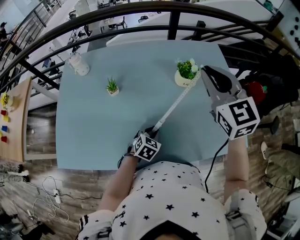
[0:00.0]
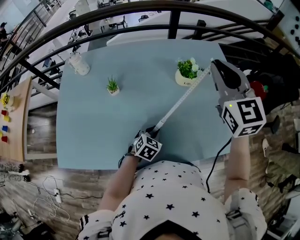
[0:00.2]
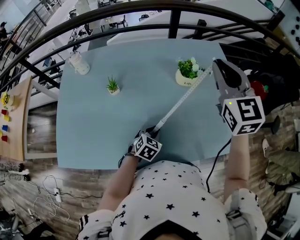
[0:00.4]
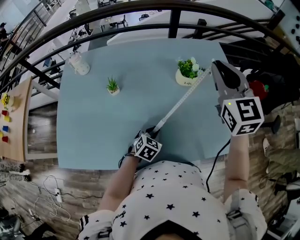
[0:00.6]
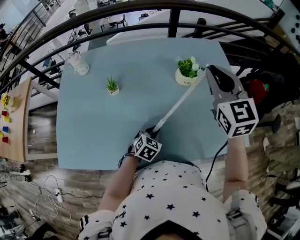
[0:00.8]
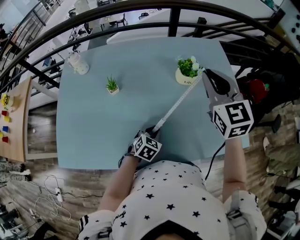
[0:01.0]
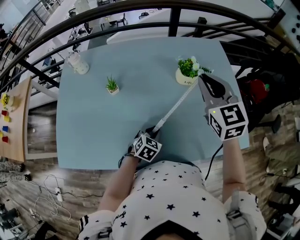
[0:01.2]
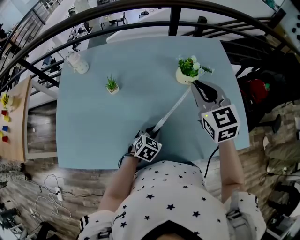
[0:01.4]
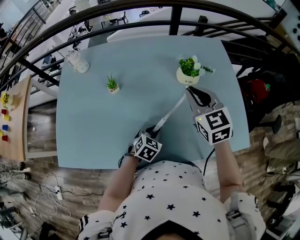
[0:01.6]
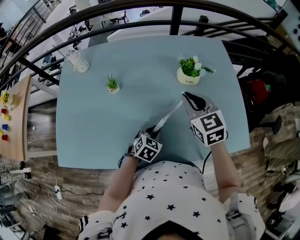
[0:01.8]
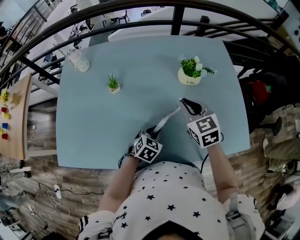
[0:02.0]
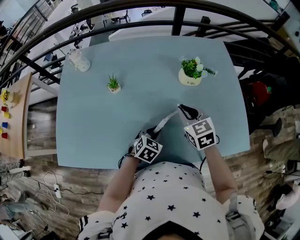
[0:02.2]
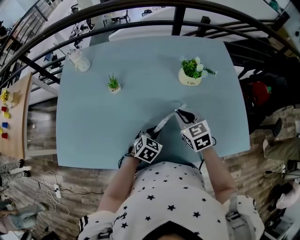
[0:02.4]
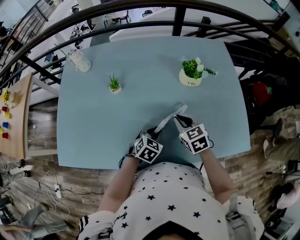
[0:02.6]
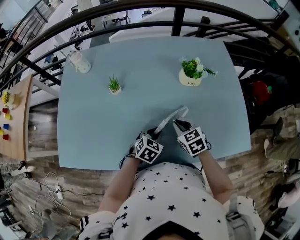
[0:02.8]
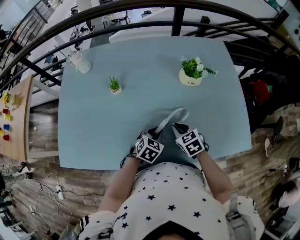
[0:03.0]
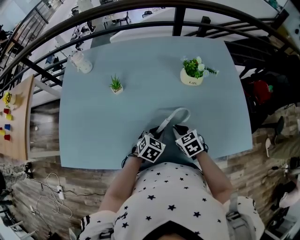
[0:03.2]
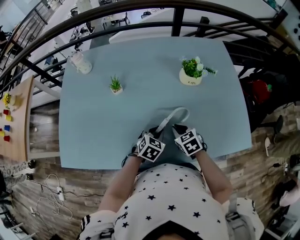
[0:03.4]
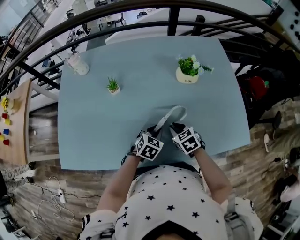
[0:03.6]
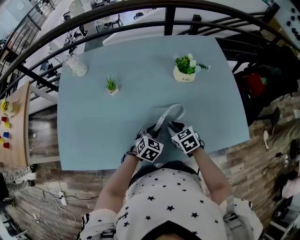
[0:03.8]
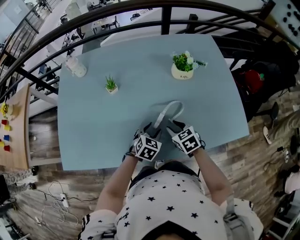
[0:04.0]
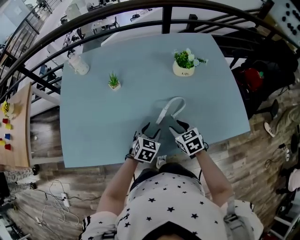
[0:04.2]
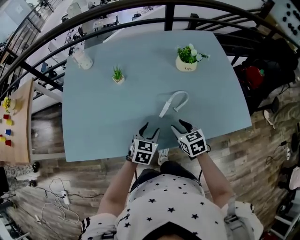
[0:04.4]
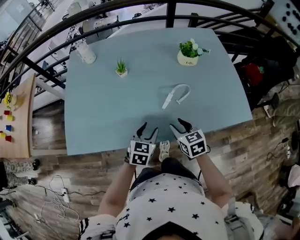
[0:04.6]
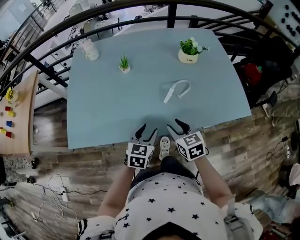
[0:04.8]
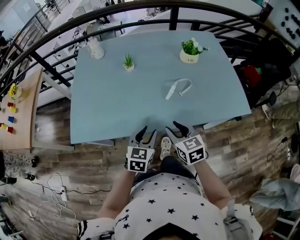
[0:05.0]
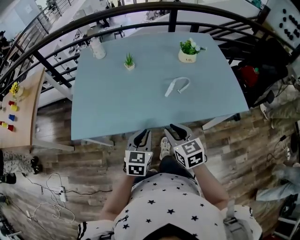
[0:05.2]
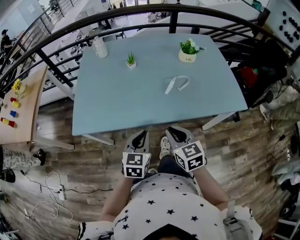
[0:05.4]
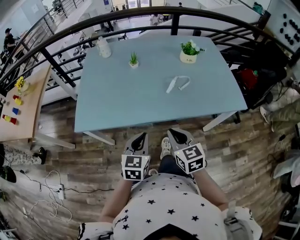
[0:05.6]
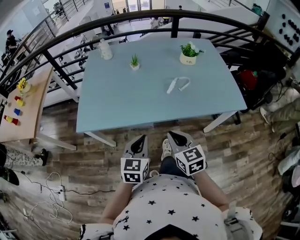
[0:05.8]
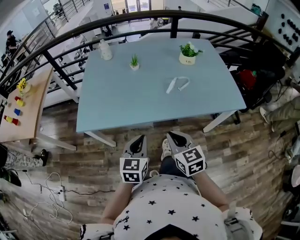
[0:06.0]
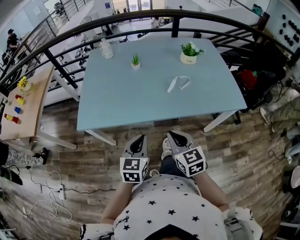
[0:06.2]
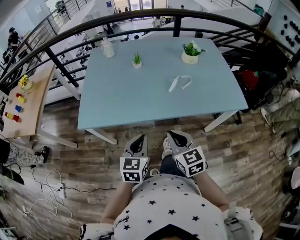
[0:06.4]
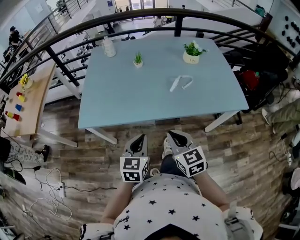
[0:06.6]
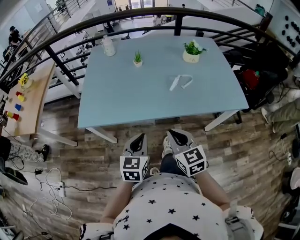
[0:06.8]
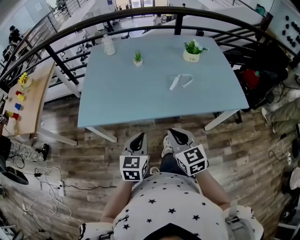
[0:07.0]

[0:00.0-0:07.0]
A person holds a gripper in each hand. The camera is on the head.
0:00.0 to 0:01.4: The right gripper is displaced downward by about 10 cm.
0:01.4 to 0:02.8: The right gripper travels downward by roughly 20 cm, and swivels roughly 30 degrees.
0:02.8 to 0:04.2: The left gripper changes place by about 5 cm, and opens. Meanwhile the right gripper shifts some 10 cm backward, and opens.
0:04.2 to 0:05.6: The right gripper moves backward, upward and to the left, roughly 30 cm, rotates roughly 20 degrees, and closes. Meanwhile the left gripper shifts about 35 cm backward, to the left and upward, rotates some 20 degrees, and closes.
0:05.6 to 0:07.0: The grippers make only small movements.

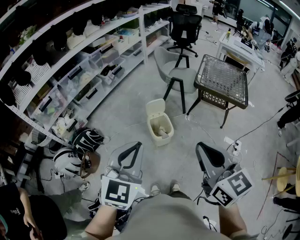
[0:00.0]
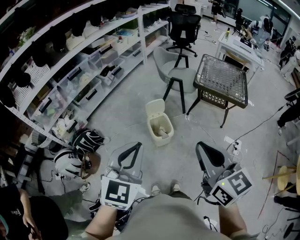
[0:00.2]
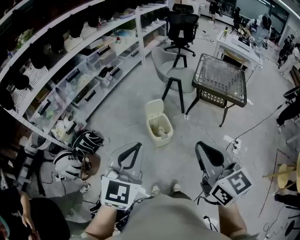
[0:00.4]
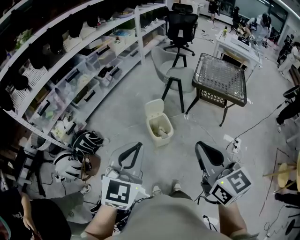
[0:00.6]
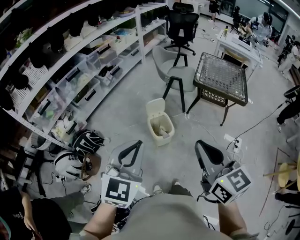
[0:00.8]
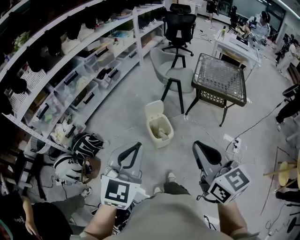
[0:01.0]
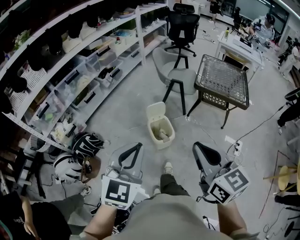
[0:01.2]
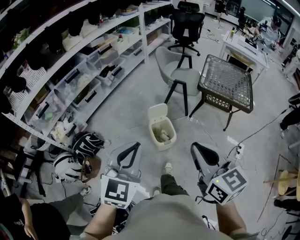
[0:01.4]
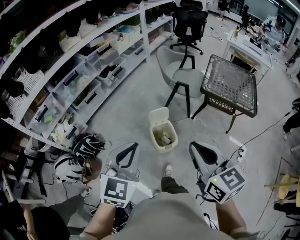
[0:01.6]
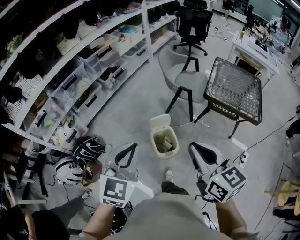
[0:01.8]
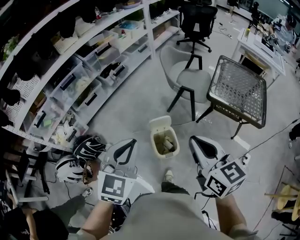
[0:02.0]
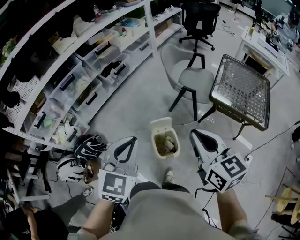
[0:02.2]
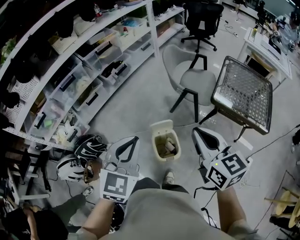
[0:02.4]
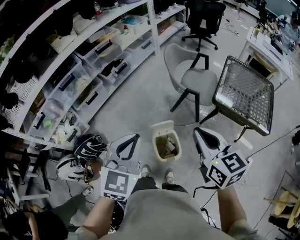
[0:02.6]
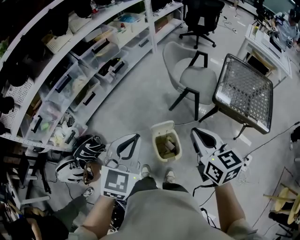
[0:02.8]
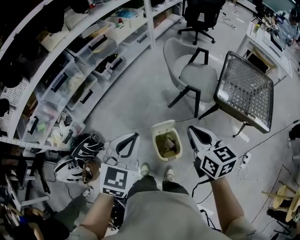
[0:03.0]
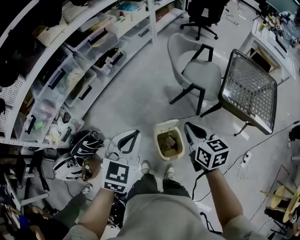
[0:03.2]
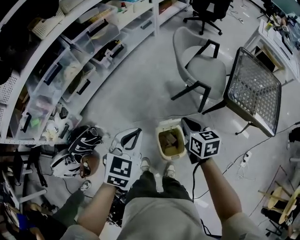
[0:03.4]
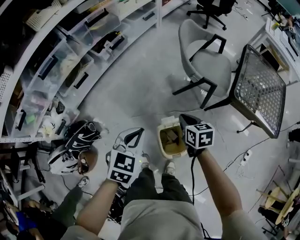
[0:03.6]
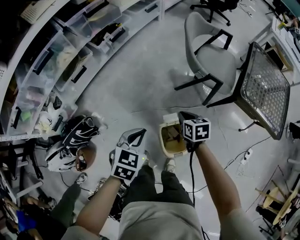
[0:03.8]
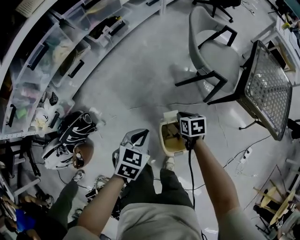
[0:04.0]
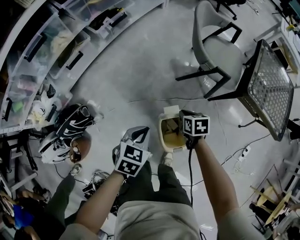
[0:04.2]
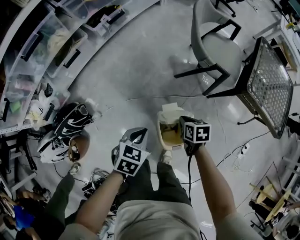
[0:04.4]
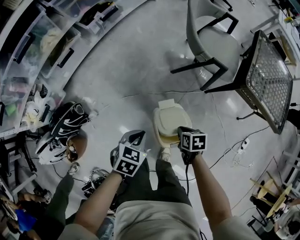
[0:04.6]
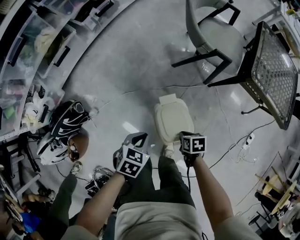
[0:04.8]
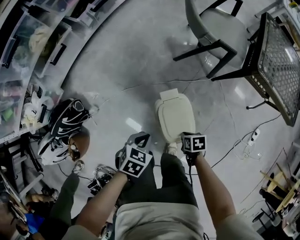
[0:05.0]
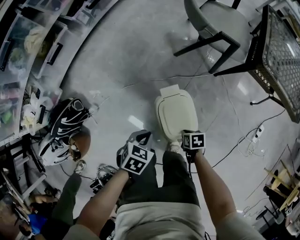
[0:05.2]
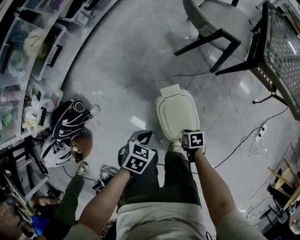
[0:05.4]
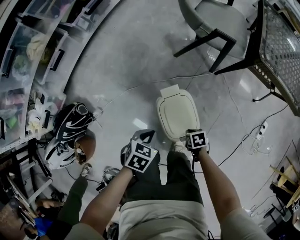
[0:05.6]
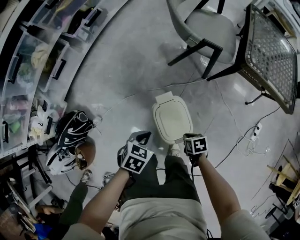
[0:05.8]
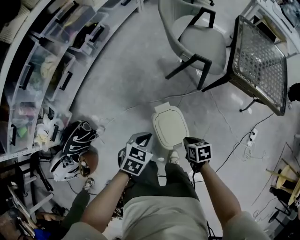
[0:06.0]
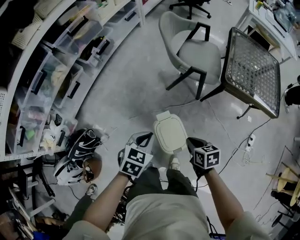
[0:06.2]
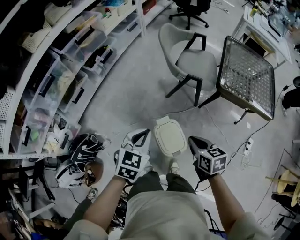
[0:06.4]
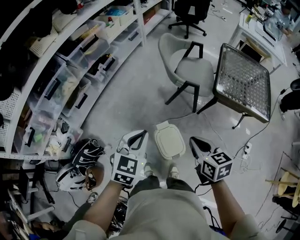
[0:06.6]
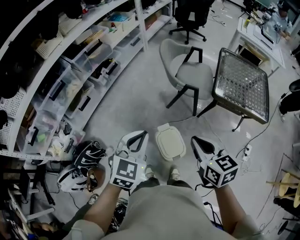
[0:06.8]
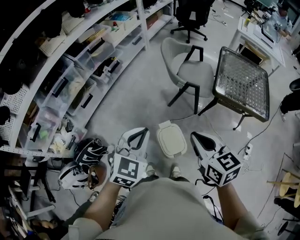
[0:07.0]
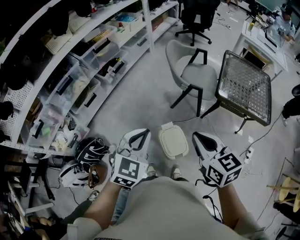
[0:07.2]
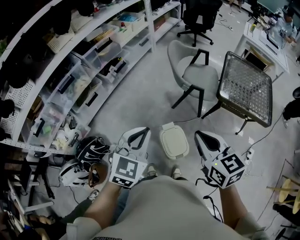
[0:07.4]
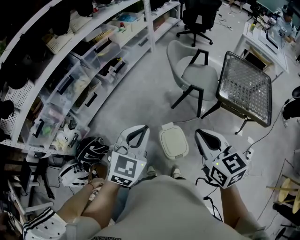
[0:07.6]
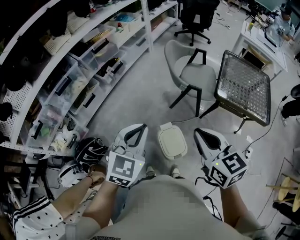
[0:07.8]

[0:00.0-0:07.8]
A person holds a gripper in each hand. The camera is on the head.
0:00.0 to 0:01.6: The two grippers go about 15 cm forward.
0:01.6 to 0:03.2: The right gripper travels forward and downward by some 40 cm. Meanwhile the left gripper travels forward by about 30 cm.
0:03.2 to 0:04.6: Both grippers move downward, some 35 cm. The left gripper swivels about 30 degrees. Meanwhile the right gripper tips its fingers downward by some 40 degrees.
0:04.6 to 0:06.2: Both grippers move upward, roughly 15 cm.
0:06.2 to 0:07.8: The grippers both shift upward by approximately 30 cm. The left gripper rotates about 30 degrees. Meanwhile the right gripper points its fingers roughly 30 degrees further upward.

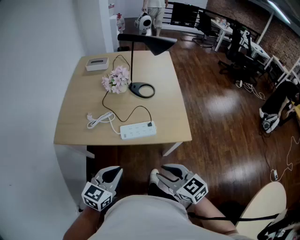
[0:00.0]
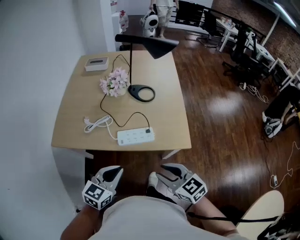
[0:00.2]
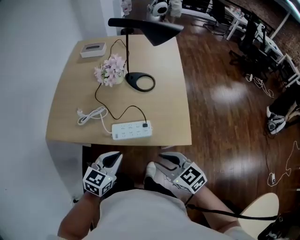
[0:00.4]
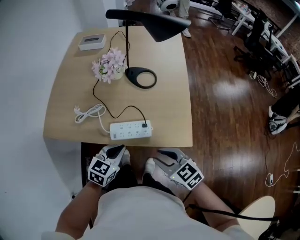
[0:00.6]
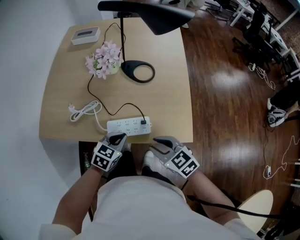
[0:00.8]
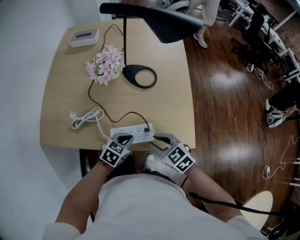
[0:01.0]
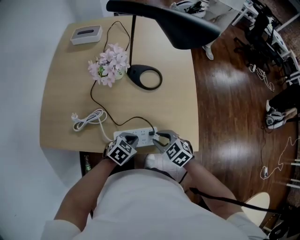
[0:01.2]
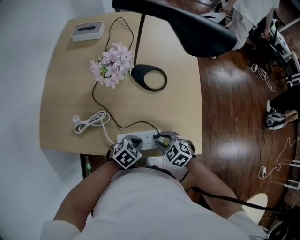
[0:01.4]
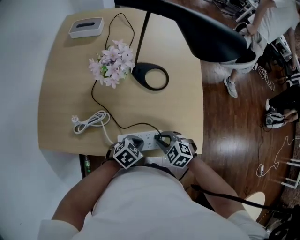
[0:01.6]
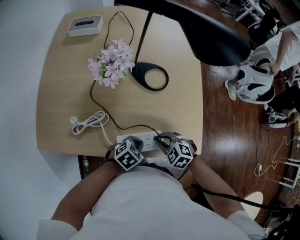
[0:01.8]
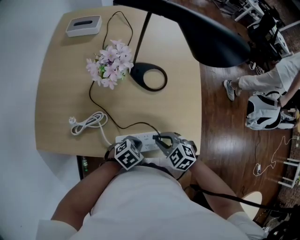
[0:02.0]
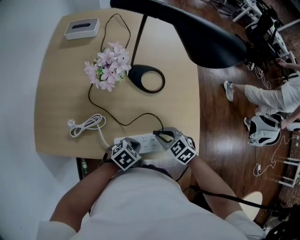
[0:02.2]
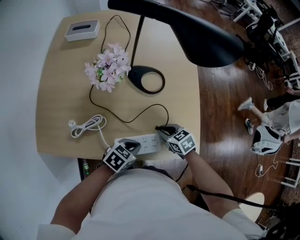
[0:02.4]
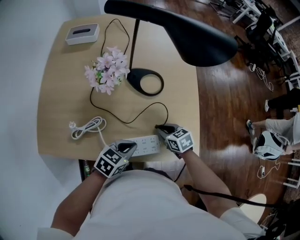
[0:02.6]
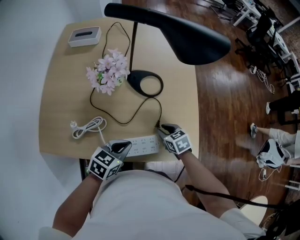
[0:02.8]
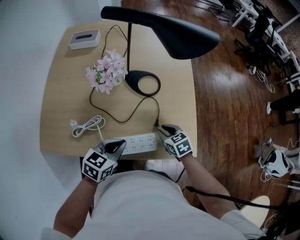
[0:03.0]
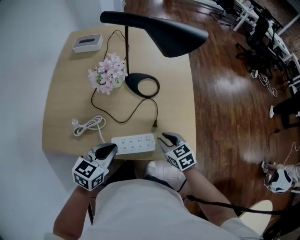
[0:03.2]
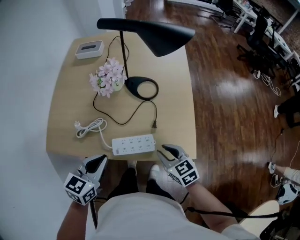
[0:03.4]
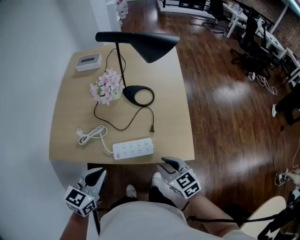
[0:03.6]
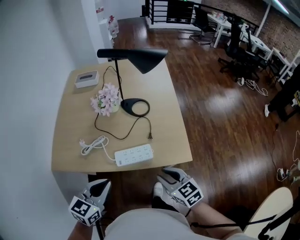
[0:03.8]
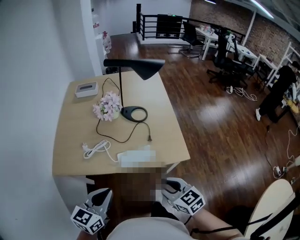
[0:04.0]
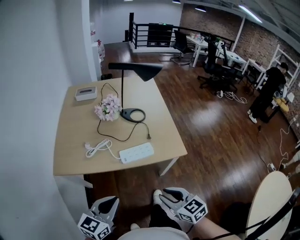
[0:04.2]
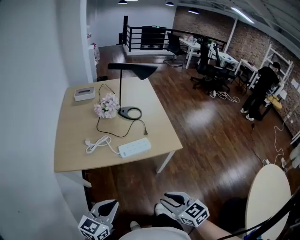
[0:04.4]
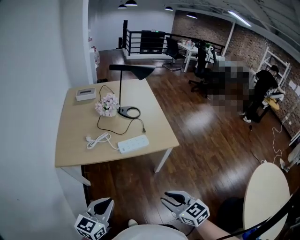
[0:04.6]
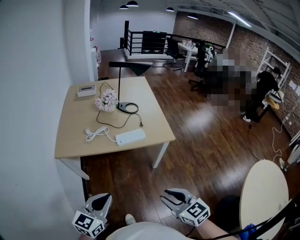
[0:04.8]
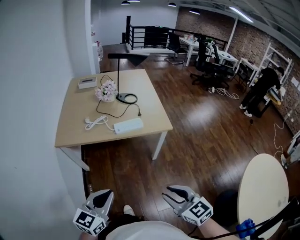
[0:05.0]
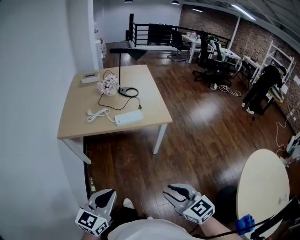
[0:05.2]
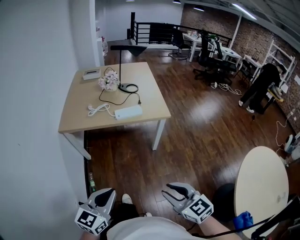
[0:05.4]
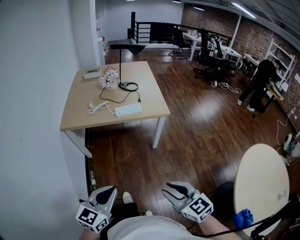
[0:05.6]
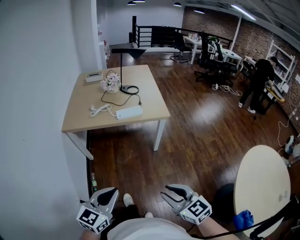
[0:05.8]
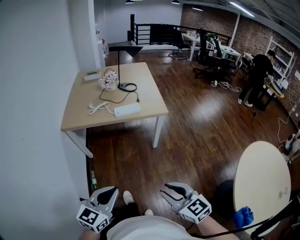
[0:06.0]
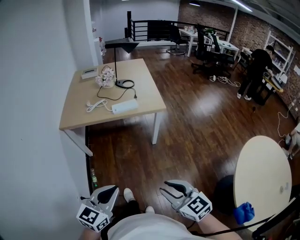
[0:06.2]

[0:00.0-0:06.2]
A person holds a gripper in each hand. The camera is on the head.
0:00.0 to 0:01.6: The left gripper ends up about 35 cm from where it was, and angles its fingers downward, by roughly 30 degrees; the right gripper moves about 35 cm, and tips its fingers downward by some 30 degrees.
0:01.6 to 0:03.2: The right gripper ends up roughly 10 cm from where it was, and turns by approximately 40 degrees, while the left gripper heads upward, covering roughly 15 cm, and turns by approximately 30 degrees.
0:03.2 to 0:04.6: The pair of grippers is taken backward, some 40 cm. The left gripper swivels roughly 20 degrees.
0:04.6 to 0:06.2: The left gripper moves backward and to the right, some 30 cm; the right gripper heads backward, covering roughly 25 cm.

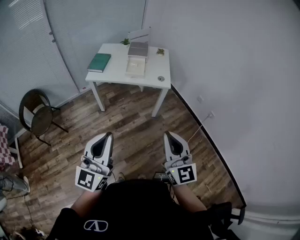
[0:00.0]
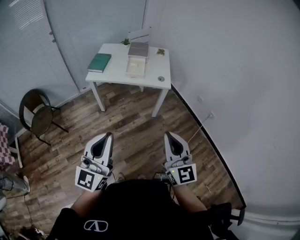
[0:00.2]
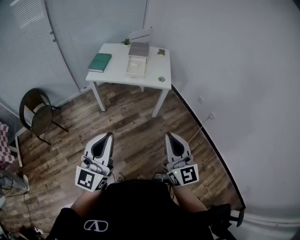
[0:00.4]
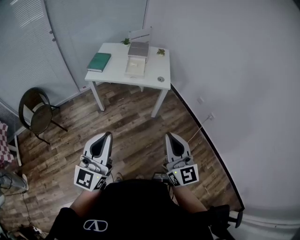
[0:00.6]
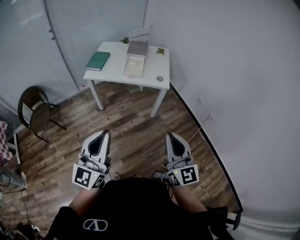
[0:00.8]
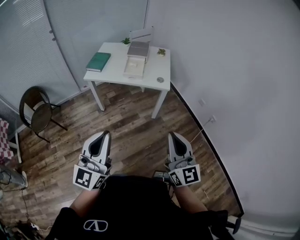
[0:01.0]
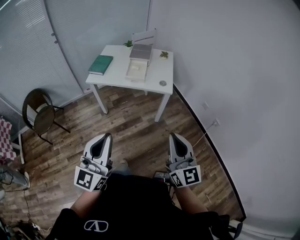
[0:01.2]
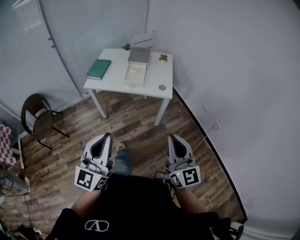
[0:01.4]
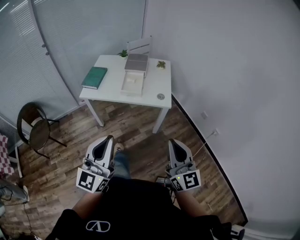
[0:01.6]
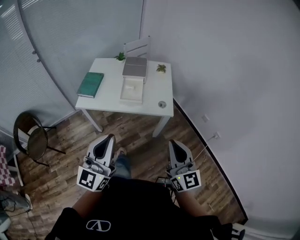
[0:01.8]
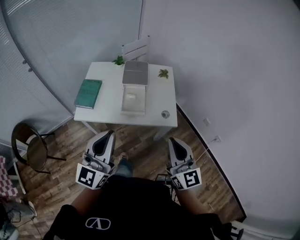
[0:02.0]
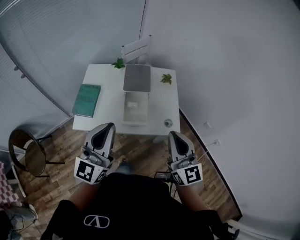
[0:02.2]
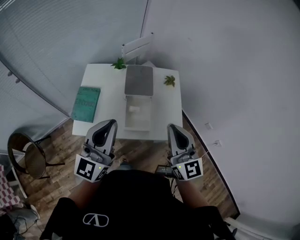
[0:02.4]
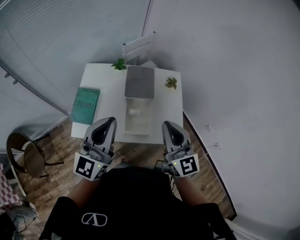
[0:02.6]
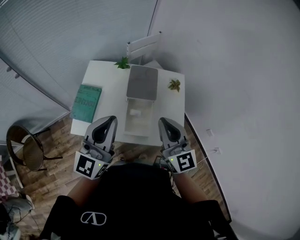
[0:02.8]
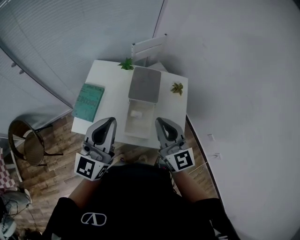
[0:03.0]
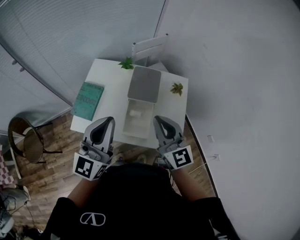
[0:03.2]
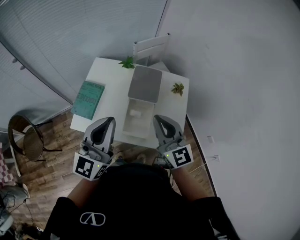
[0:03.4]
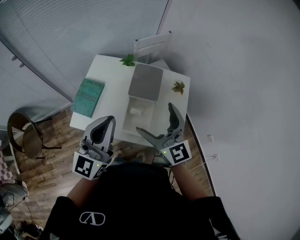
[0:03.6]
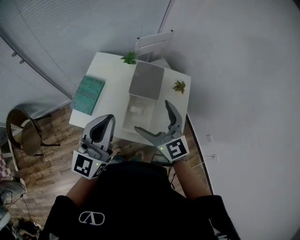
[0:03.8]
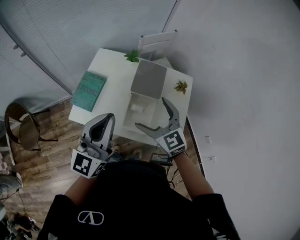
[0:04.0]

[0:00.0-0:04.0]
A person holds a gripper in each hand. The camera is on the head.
0:00.0 to 0:01.4: The grippers both shift forward and to the right by about 10 cm.
0:01.4 to 0:02.6: The two grippers travel together, forward, about 60 cm.
0:02.6 to 0:04.0: The right gripper moves downward, forward and to the left, about 15 cm, turns by some 30 degrees, and opens.
